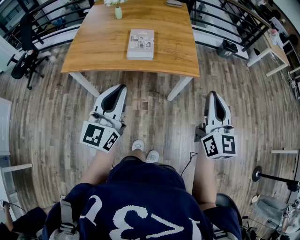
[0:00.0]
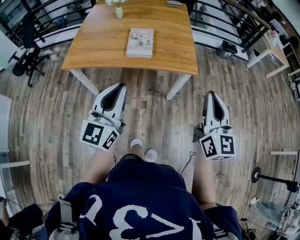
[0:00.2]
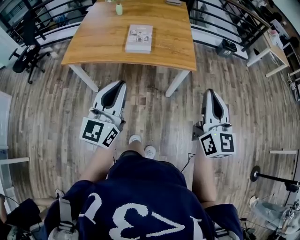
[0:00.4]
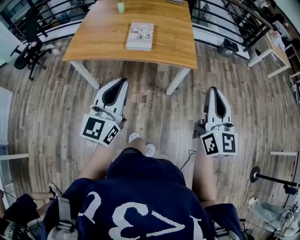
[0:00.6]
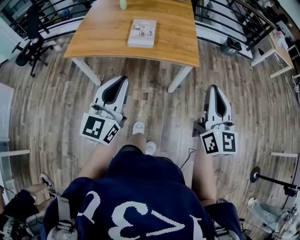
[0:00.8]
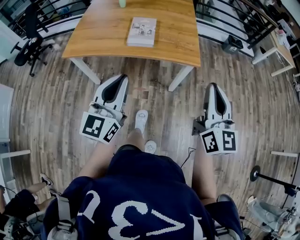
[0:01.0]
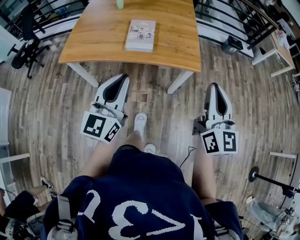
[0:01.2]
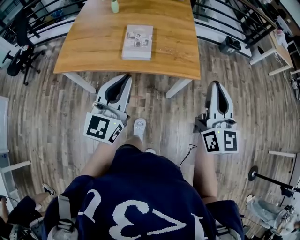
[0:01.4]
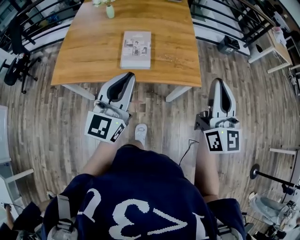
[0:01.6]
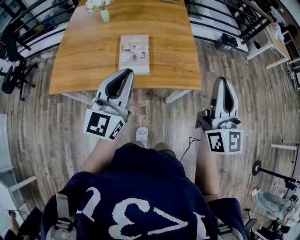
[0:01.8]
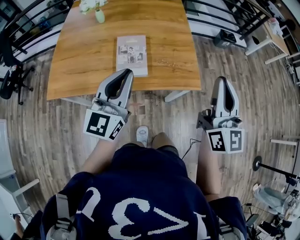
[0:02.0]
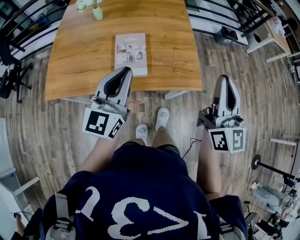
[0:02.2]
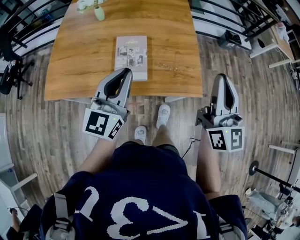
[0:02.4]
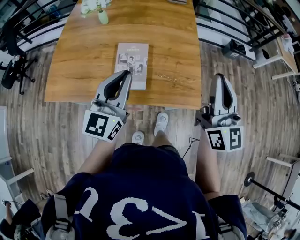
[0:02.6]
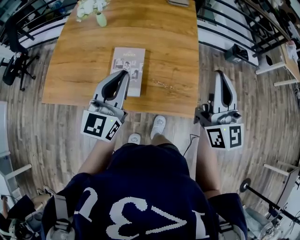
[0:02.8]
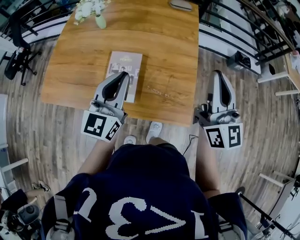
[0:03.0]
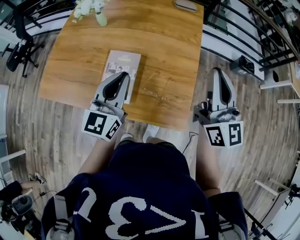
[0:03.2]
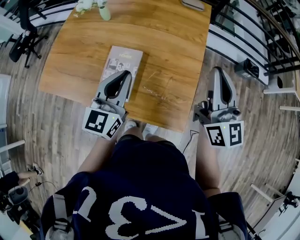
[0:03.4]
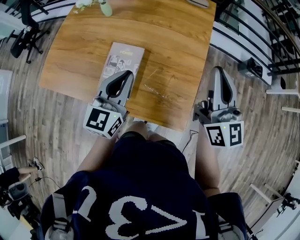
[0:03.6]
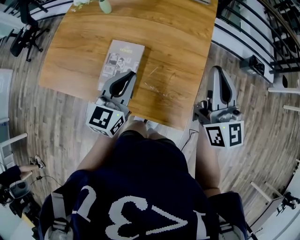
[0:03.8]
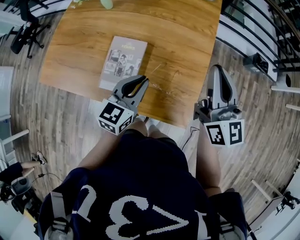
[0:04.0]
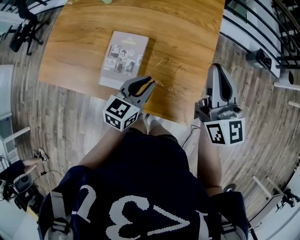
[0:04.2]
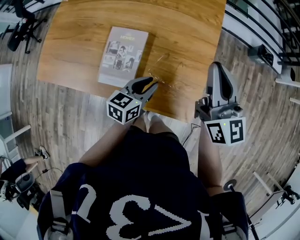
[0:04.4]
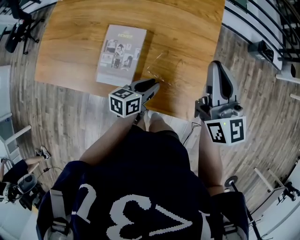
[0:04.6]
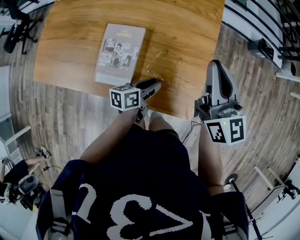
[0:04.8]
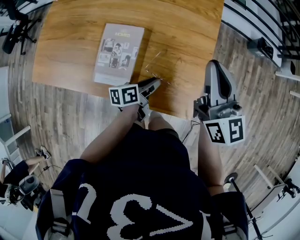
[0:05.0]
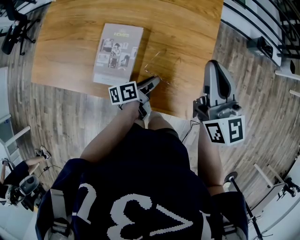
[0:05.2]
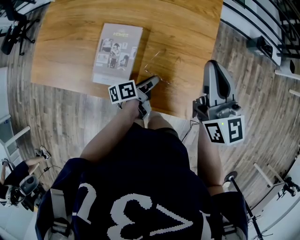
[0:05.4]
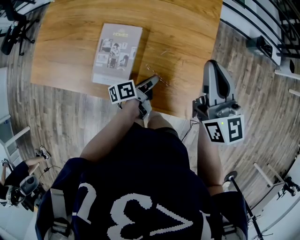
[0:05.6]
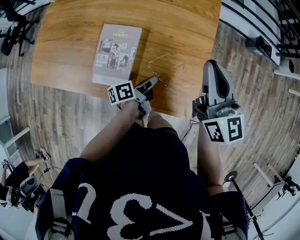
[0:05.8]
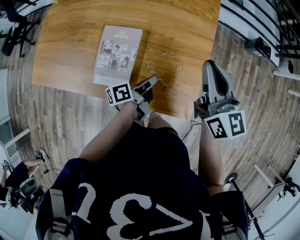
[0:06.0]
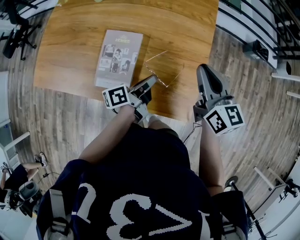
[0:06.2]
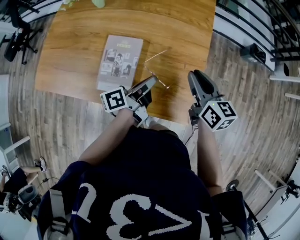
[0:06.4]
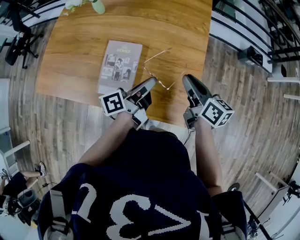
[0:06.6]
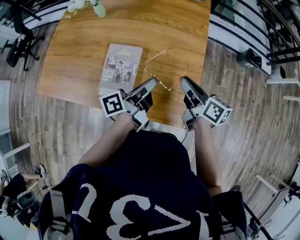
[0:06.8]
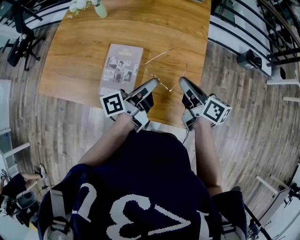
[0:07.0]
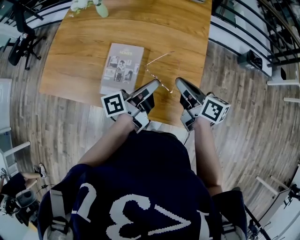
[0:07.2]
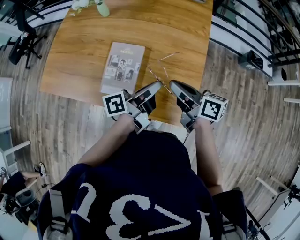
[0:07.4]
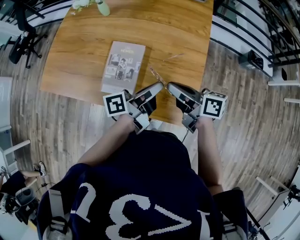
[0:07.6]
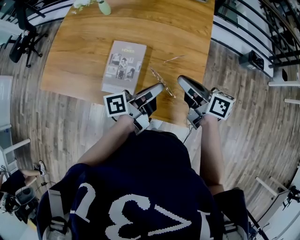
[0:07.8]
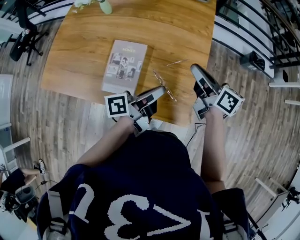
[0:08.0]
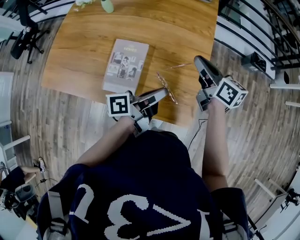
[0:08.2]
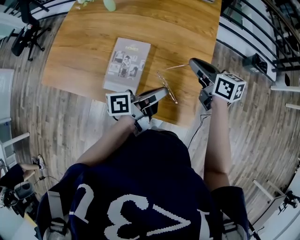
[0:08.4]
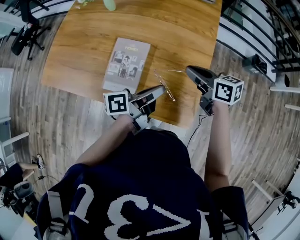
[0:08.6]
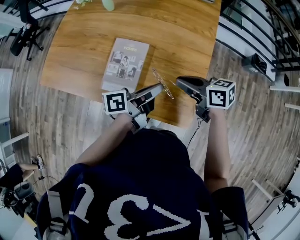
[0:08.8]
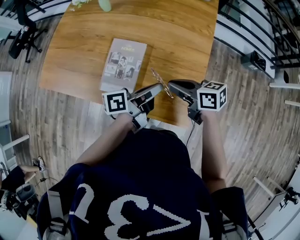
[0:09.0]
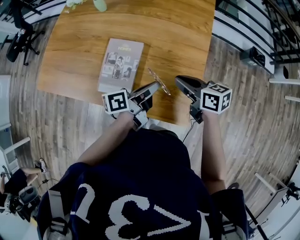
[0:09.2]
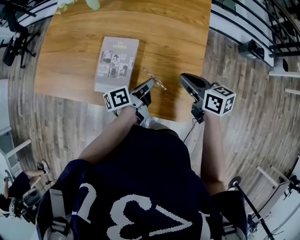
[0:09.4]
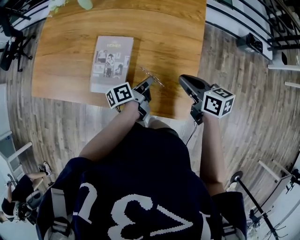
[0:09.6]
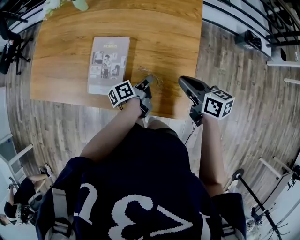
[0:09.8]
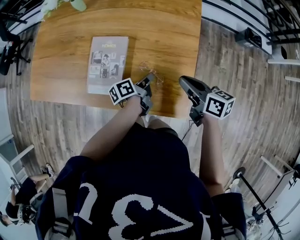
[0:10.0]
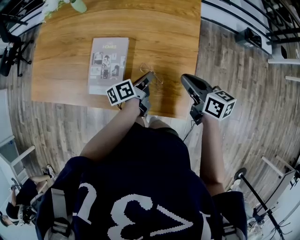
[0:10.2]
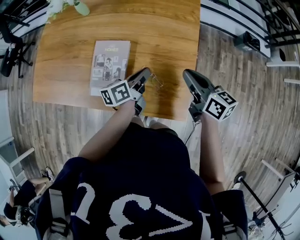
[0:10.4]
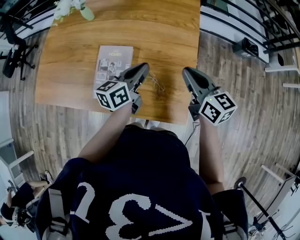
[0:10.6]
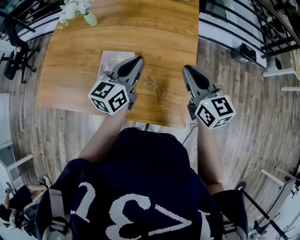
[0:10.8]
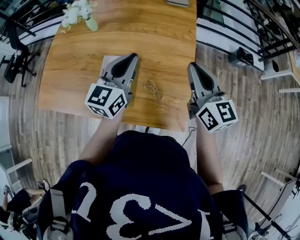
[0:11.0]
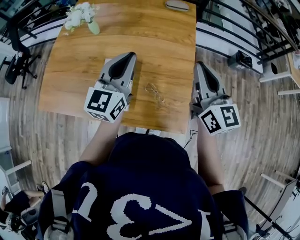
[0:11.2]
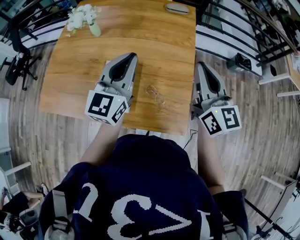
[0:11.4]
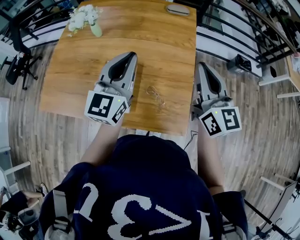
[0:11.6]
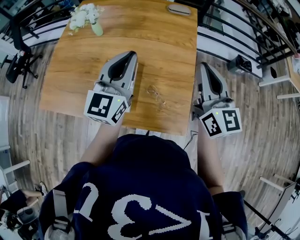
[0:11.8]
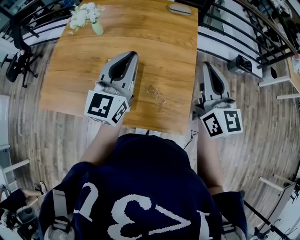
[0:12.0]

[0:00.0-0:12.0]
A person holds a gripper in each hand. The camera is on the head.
0:00.0 to 0:01.6: Both grippers travel together forward, about 15 cm.
0:01.6 to 0:03.0: The grippers both shift forward by approximately 25 cm.
0:03.0 to 0:04.4: The left gripper shifts roughly 25 cm downward and to the right, and rotates about 40 degrees; the right gripper heads downward and forward, covering about 10 cm.
0:04.4 to 0:06.0: The left gripper rotates around the line of its fingers by some 50 degrees, counterclockwise from behind.
0:06.0 to 0:07.6: The left gripper travels upward by about 15 cm; the right gripper goes approximately 15 cm to the left, downward and backward, and turns by approximately 50 degrees.
0:07.6 to 0:09.0: The right gripper reaches about 10 cm forward, then returns, and rotates approximately 20 degrees.
0:09.0 to 0:10.4: The right gripper is displaced to the right by approximately 10 cm, and rotates approximately 30 degrees, while the left gripper shifts roughly 10 cm downward and forward, and turns by about 20 degrees.
0:10.4 to 0:12.0: The grippers both shift upward by roughly 25 cm. The left gripper rolls clockwise, seen from behind, by roughly 60 degrees. The right gripper turns by some 40 degrees.

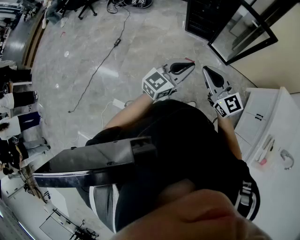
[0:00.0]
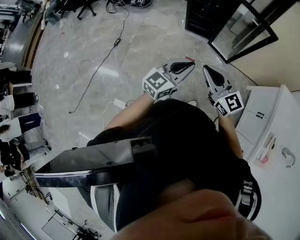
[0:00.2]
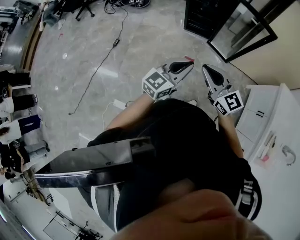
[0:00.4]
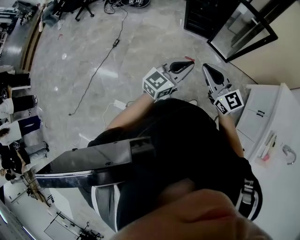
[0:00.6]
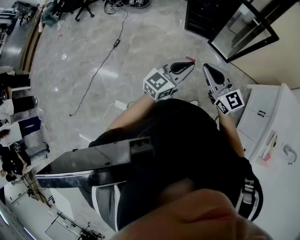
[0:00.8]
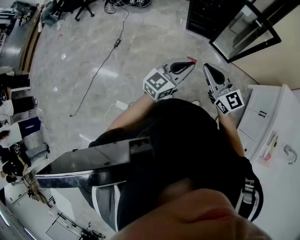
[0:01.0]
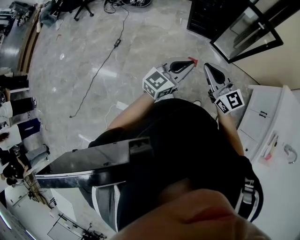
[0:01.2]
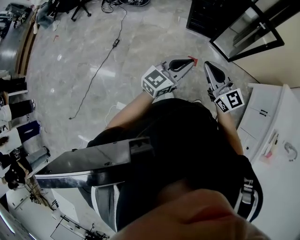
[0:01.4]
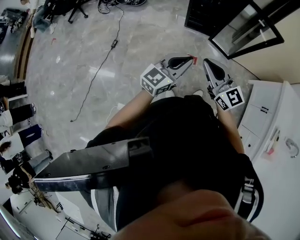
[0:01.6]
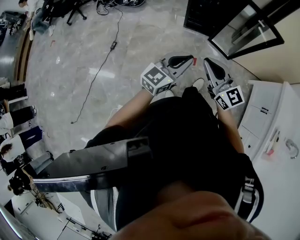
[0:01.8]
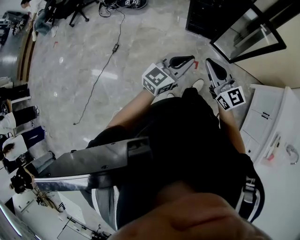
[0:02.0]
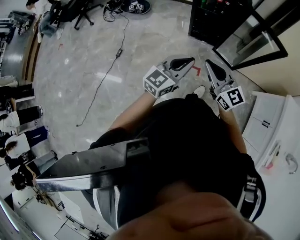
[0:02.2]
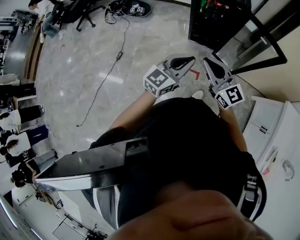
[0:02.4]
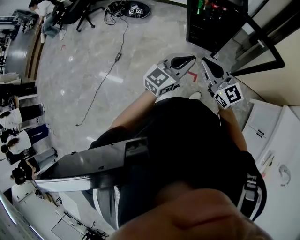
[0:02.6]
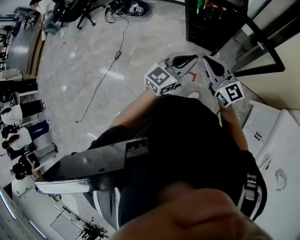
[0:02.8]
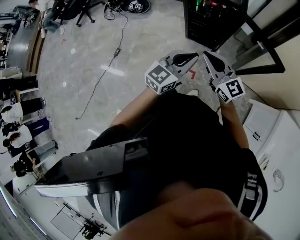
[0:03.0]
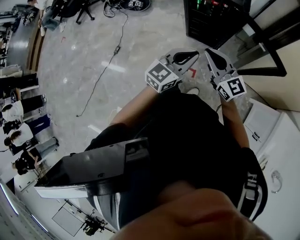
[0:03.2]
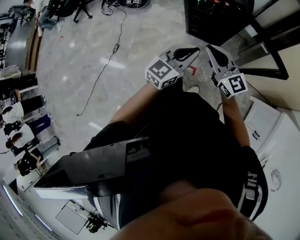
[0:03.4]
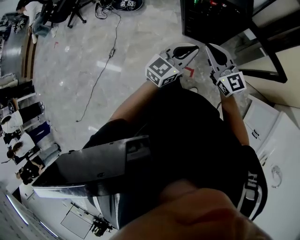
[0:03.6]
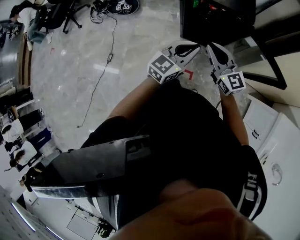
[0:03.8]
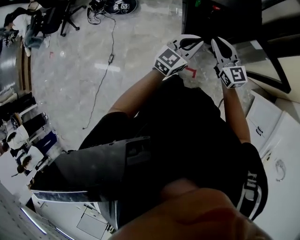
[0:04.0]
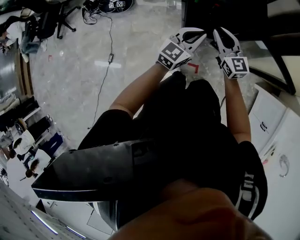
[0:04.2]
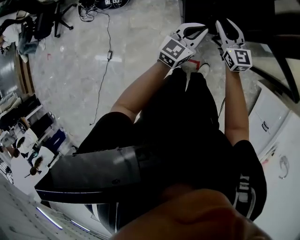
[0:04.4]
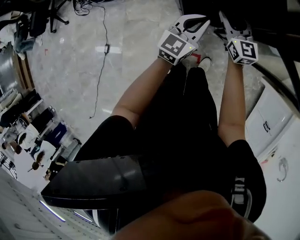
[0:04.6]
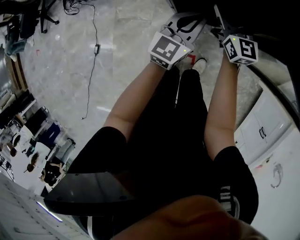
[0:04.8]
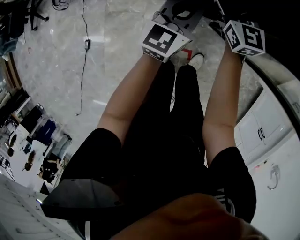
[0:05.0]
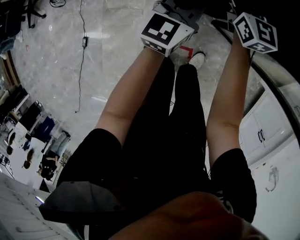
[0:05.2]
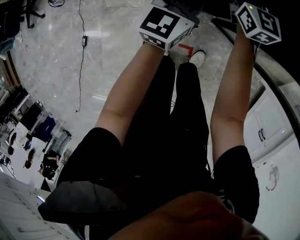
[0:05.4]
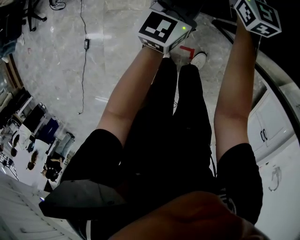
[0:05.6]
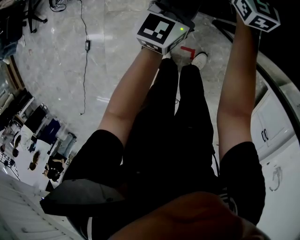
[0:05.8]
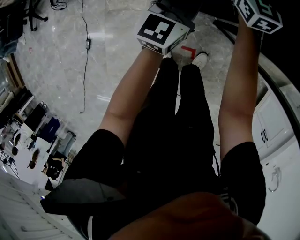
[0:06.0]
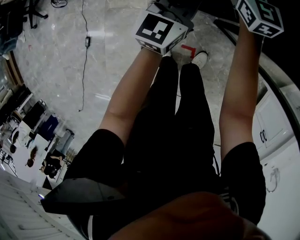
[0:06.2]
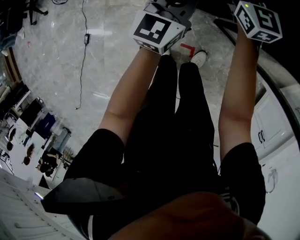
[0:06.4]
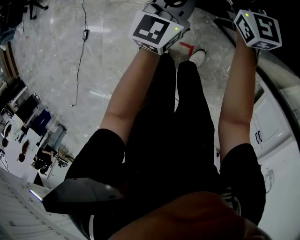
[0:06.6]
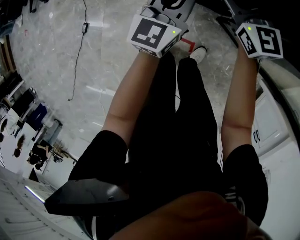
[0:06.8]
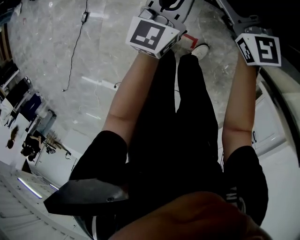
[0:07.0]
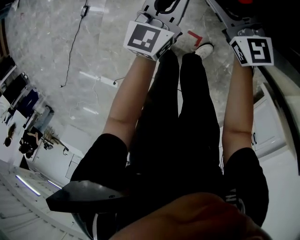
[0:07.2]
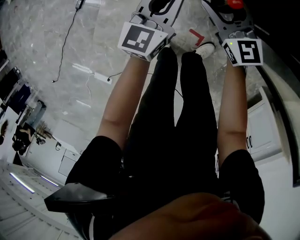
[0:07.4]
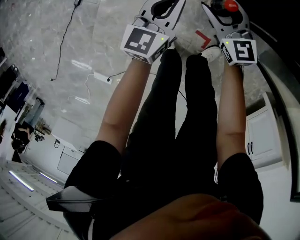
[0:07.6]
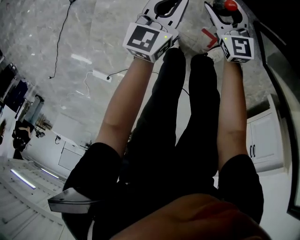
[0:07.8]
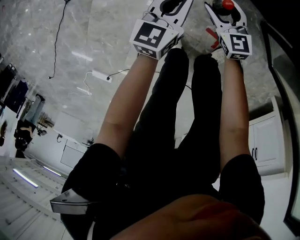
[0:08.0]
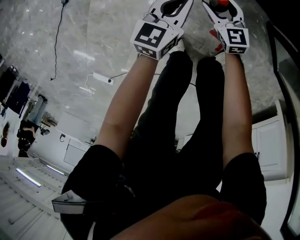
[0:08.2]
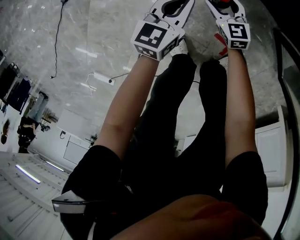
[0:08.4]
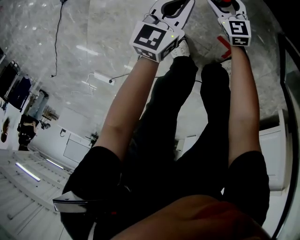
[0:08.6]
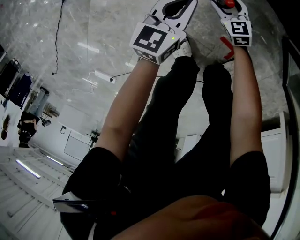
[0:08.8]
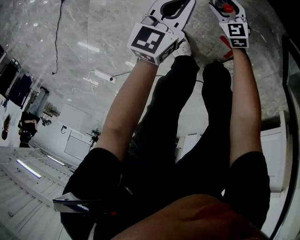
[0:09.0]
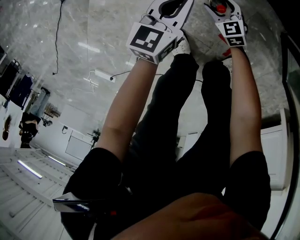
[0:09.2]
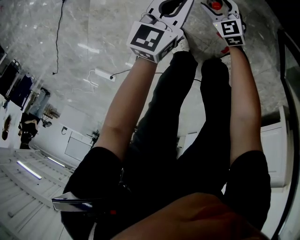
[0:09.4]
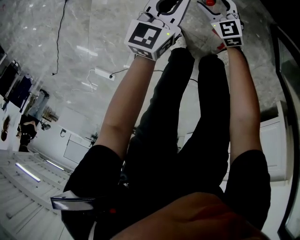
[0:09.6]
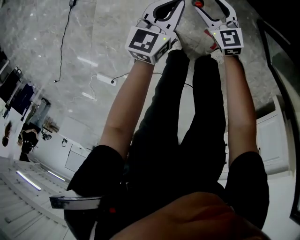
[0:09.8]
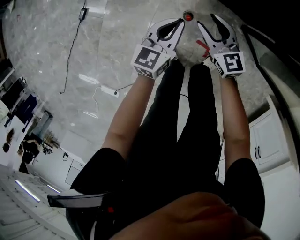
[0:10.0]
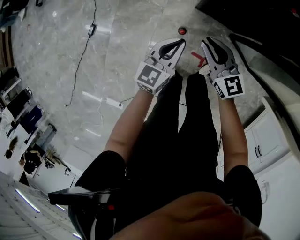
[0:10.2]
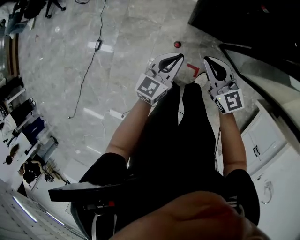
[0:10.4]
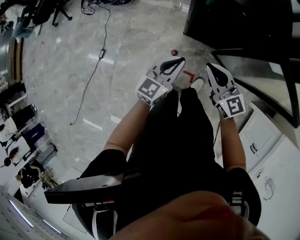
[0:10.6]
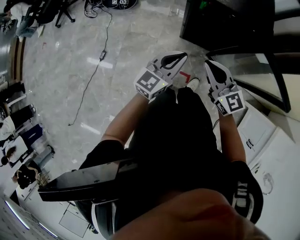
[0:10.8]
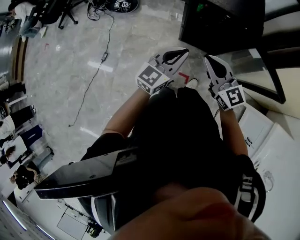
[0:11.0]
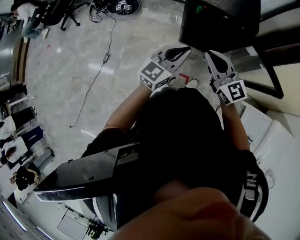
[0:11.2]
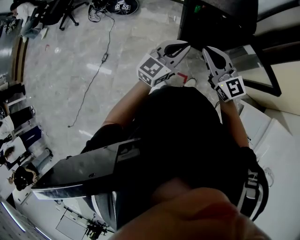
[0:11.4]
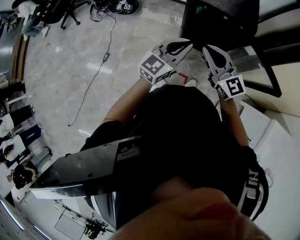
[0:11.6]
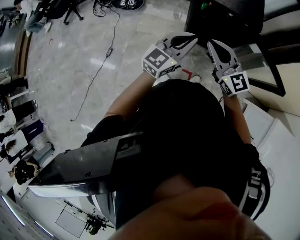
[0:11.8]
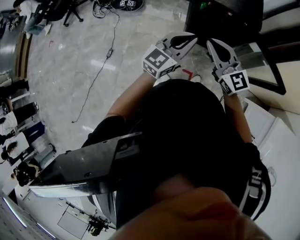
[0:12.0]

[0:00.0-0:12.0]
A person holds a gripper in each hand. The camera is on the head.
0:00.0 to 0:01.6: The two grippers go approximately 15 cm to the left and forward.
0:01.6 to 0:03.0: The two grippers go roughly 25 cm forward and to the right.
0:03.0 to 0:04.4: Both grippers move forward and downward, about 35 cm. The right gripper rotates roughly 30 degrees.
0:04.4 to 0:06.0: The left gripper is displaced downward and forward by some 20 cm, while the right gripper goes some 25 cm forward and downward, and opens.
0:06.0 to 0:07.6: The right gripper changes place by some 40 cm, and changes its angle by some 30 degrees. Meanwhile the left gripper moves roughly 35 cm, and rotates some 30 degrees.
0:07.6 to 0:09.0: The right gripper goes some 40 cm downward, and turns by approximately 30 degrees, while the left gripper heads downward, covering roughly 25 cm.
0:09.0 to 0:10.4: Both grippers travel together upward, some 60 cm. The left gripper changes its angle by some 20 degrees. Meanwhile the right gripper changes its angle by roughly 30 degrees, and closes.
0:10.4 to 0:12.0: The two grippers go roughly 30 cm upward. The left gripper changes its angle by some 20 degrees.
